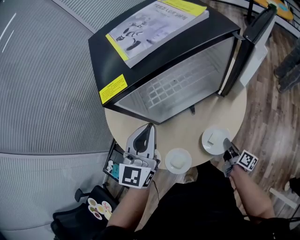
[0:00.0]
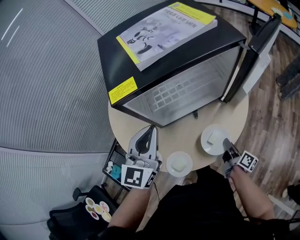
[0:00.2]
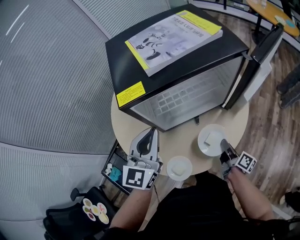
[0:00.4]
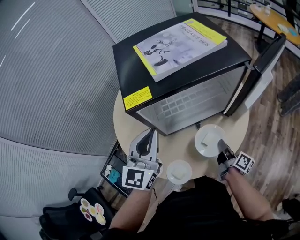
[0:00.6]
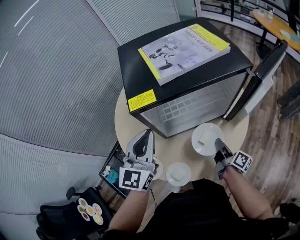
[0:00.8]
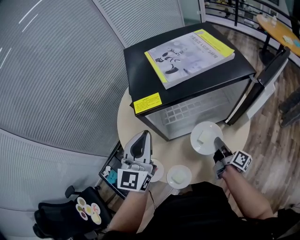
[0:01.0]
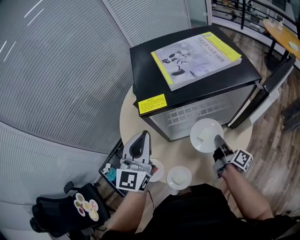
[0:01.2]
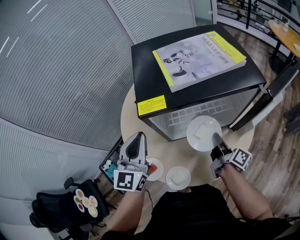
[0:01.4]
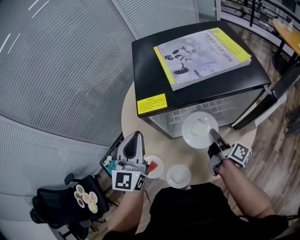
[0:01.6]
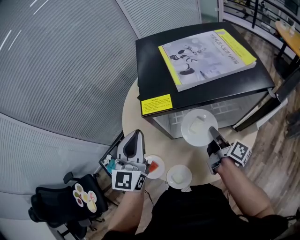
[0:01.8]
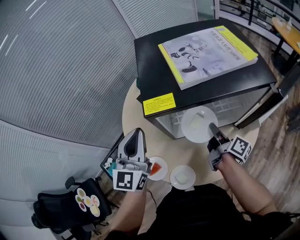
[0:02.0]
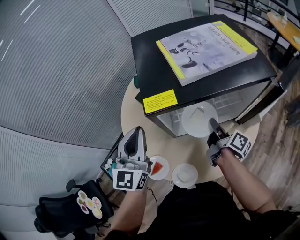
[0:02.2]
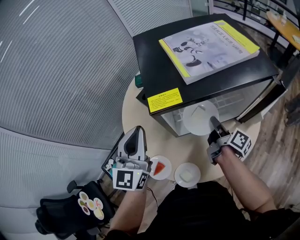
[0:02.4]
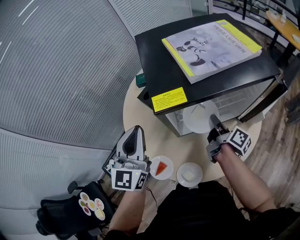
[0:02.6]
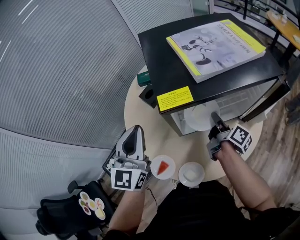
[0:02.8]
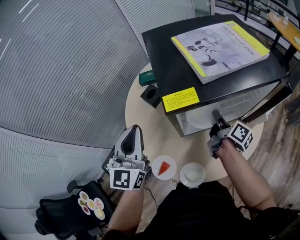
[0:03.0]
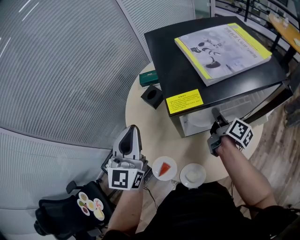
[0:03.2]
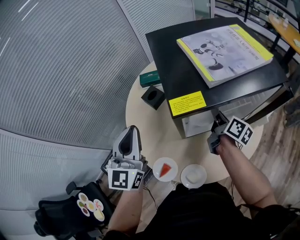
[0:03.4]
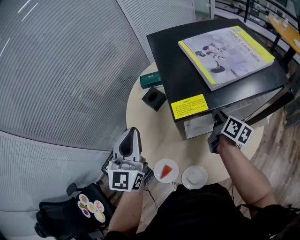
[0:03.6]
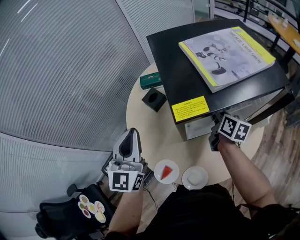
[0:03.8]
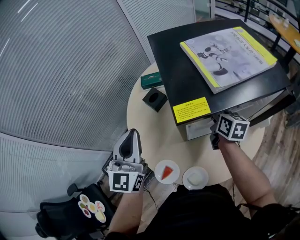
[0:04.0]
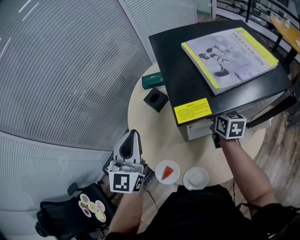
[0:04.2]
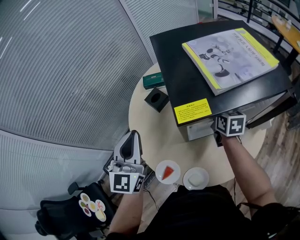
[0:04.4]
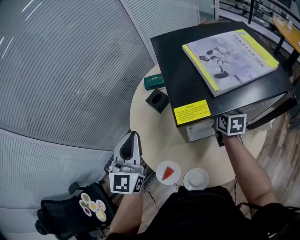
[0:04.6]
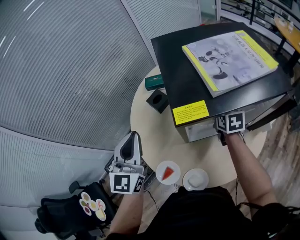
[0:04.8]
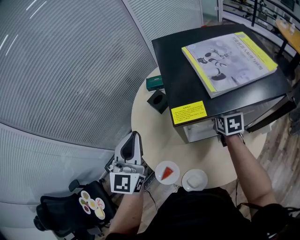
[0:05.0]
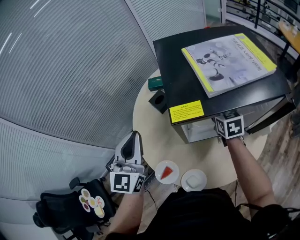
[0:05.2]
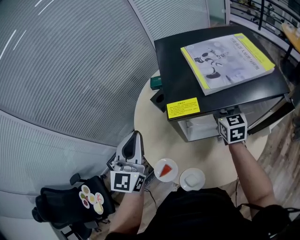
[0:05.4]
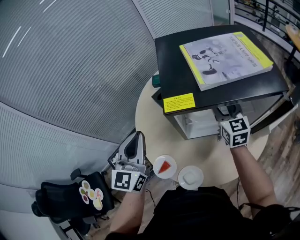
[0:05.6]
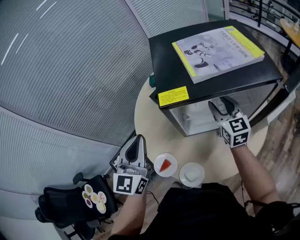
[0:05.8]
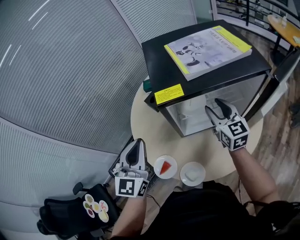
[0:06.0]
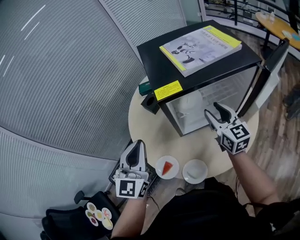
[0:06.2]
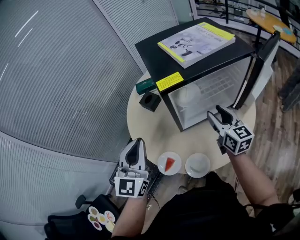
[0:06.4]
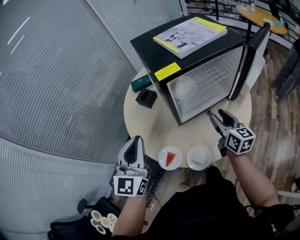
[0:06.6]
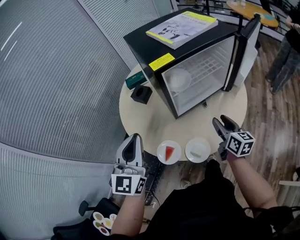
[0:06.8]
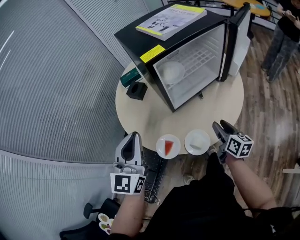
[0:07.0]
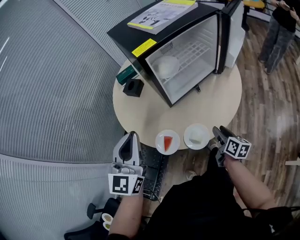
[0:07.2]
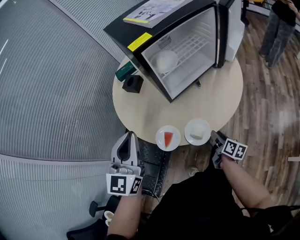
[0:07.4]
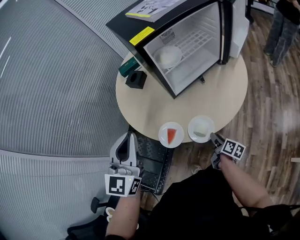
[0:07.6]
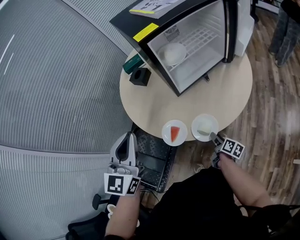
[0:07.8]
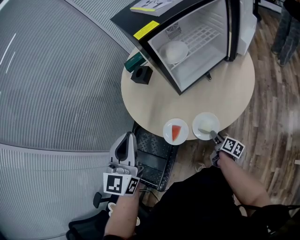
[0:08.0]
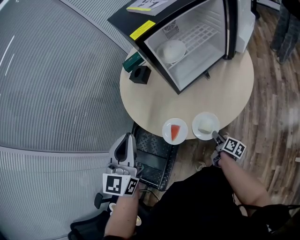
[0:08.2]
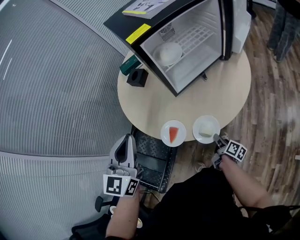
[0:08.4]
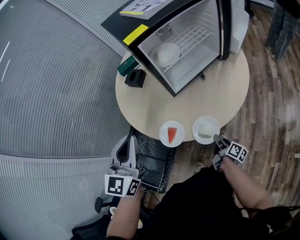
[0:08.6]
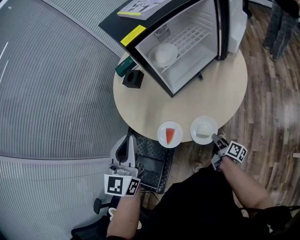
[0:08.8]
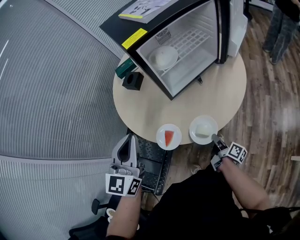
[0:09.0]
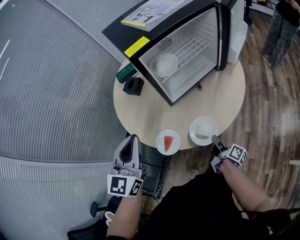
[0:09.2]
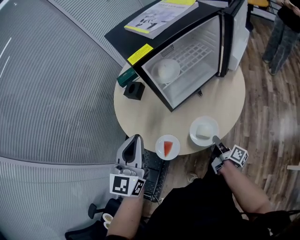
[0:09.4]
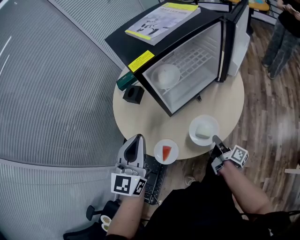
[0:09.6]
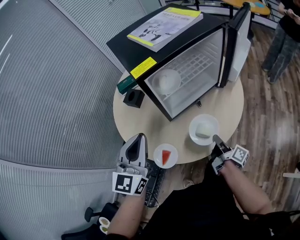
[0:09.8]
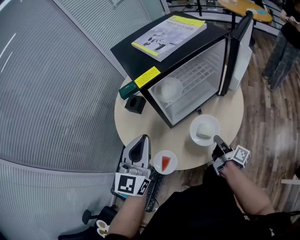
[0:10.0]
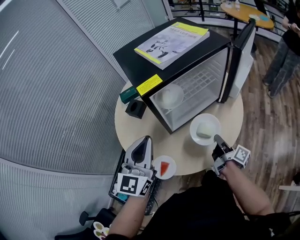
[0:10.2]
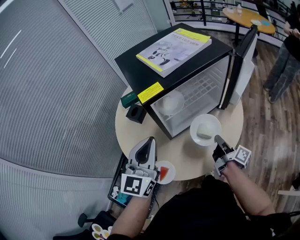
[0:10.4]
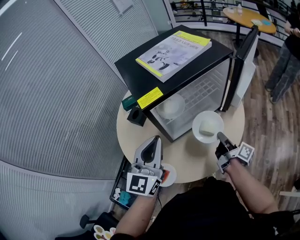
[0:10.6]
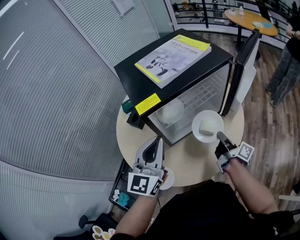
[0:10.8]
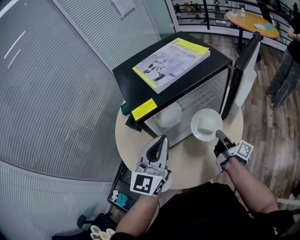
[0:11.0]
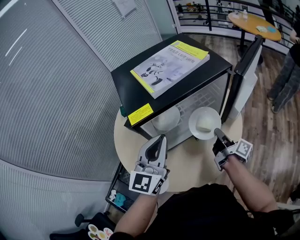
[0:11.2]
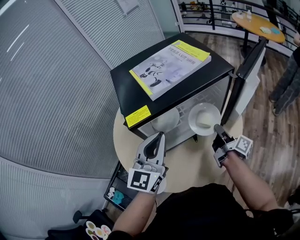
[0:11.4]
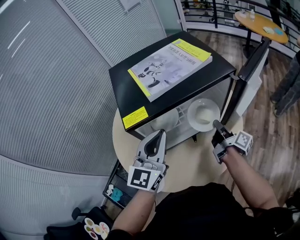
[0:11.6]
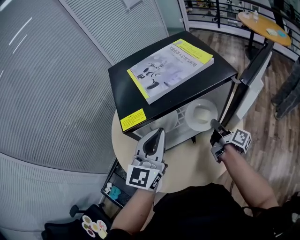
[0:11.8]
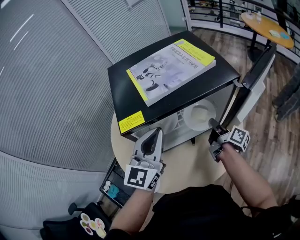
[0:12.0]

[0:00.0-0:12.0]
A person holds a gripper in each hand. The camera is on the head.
0:00.0 to 0:01.6: The left gripper travels to the left and upward by some 10 cm, and swivels approximately 20 degrees; the right gripper heads forward, upward and to the left, covering approximately 30 cm, and swivels some 30 degrees.
0:01.6 to 0:03.0: The left gripper travels to the left by approximately 5 cm. Meanwhile the right gripper goes some 10 cm forward and to the left.
0:03.0 to 0:04.4: The right gripper moves forward, some 5 cm, and rotates around the line of its fingers by roughly 50 degrees, counterclockwise from behind.
0:04.4 to 0:06.0: The left gripper heads backward, covering roughly 10 cm. The right gripper is displaced upward and backward by approximately 10 cm, rotates some 30 degrees, and opens up.
0:06.0 to 0:07.6: The left gripper is displaced backward by some 15 cm, and turns by some 20 degrees. Meanwhile the right gripper is displaced backward and downward by approximately 50 cm, and rolls clockwise, seen from behind, by roughly 70 degrees.
0:07.6 to 0:09.0: The right gripper closes its fingers.
0:09.0 to 0:10.4: The left gripper travels forward, to the right and upward by some 15 cm. The right gripper goes about 25 cm forward and upward.
0:10.4 to 0:12.0: The left gripper travels forward and to the right by some 15 cm. Meanwhile the right gripper moves forward, some 20 cm.

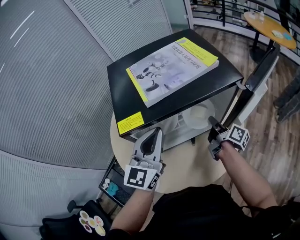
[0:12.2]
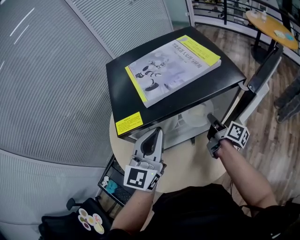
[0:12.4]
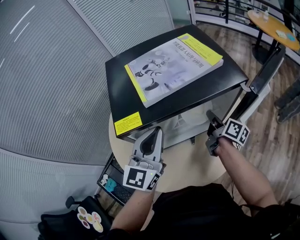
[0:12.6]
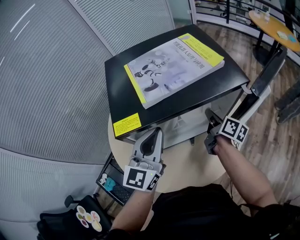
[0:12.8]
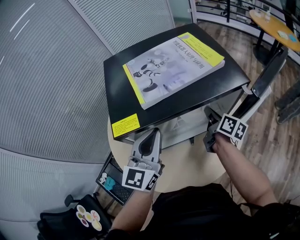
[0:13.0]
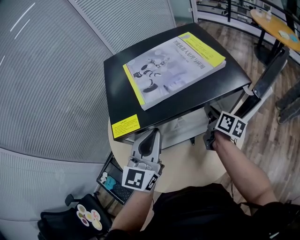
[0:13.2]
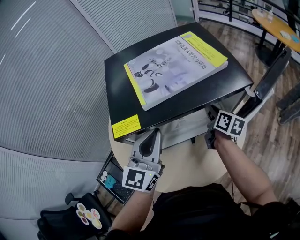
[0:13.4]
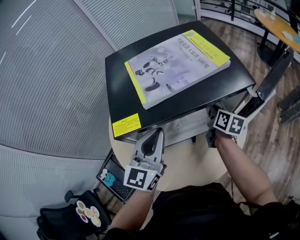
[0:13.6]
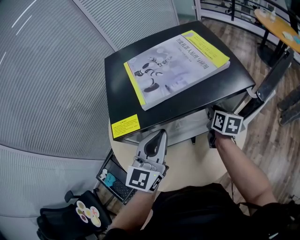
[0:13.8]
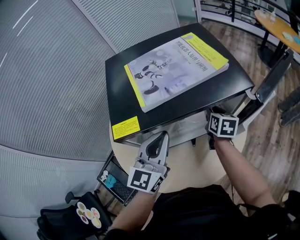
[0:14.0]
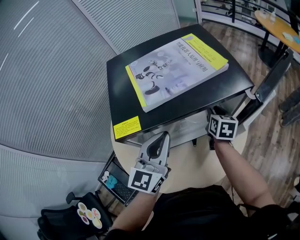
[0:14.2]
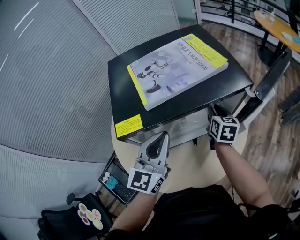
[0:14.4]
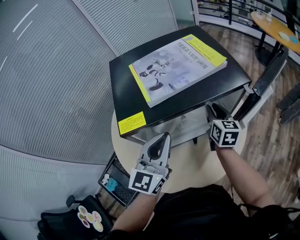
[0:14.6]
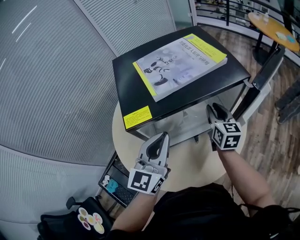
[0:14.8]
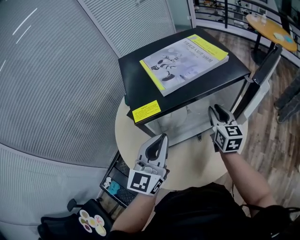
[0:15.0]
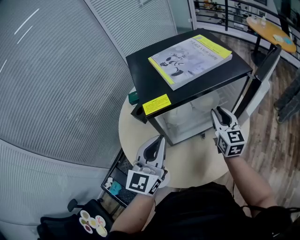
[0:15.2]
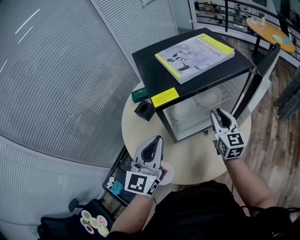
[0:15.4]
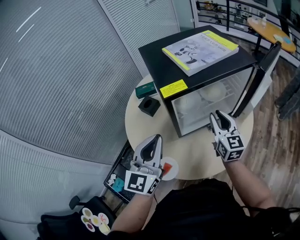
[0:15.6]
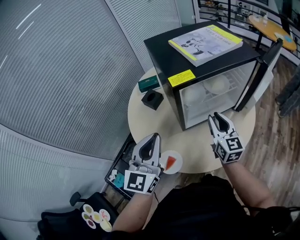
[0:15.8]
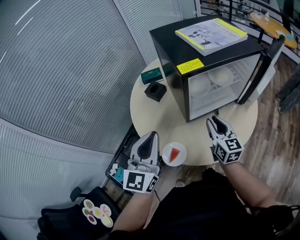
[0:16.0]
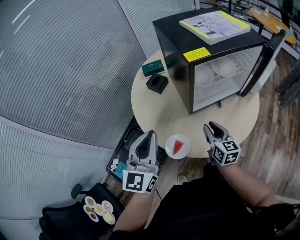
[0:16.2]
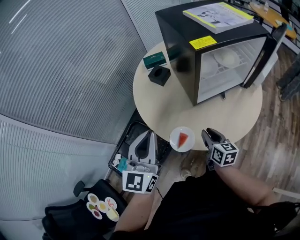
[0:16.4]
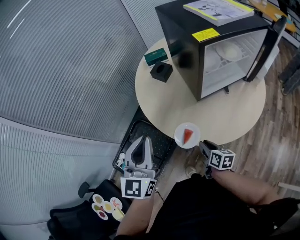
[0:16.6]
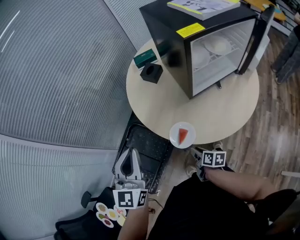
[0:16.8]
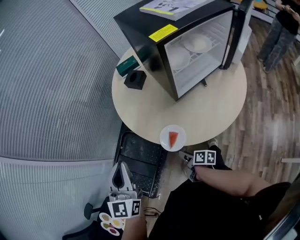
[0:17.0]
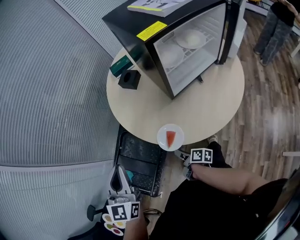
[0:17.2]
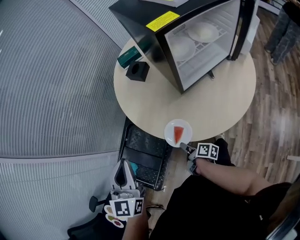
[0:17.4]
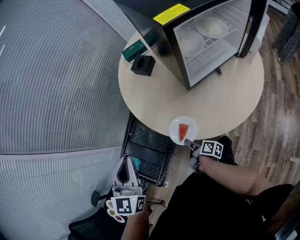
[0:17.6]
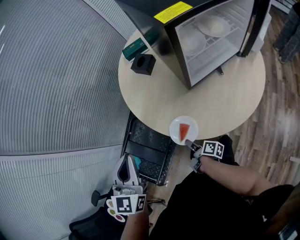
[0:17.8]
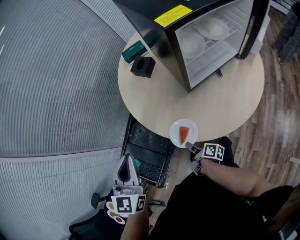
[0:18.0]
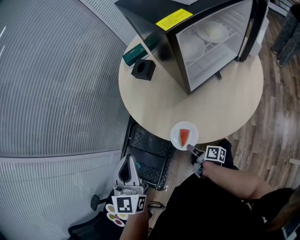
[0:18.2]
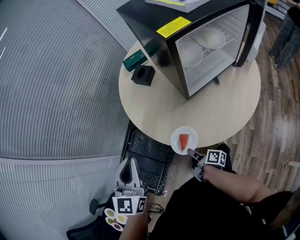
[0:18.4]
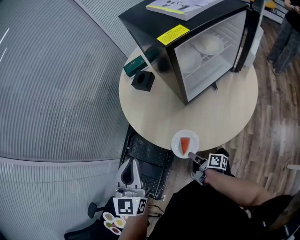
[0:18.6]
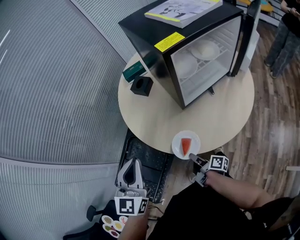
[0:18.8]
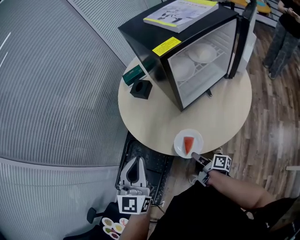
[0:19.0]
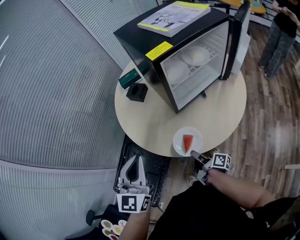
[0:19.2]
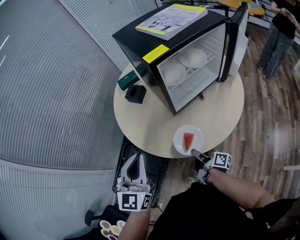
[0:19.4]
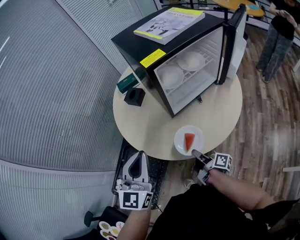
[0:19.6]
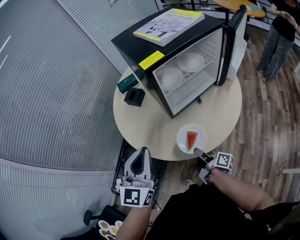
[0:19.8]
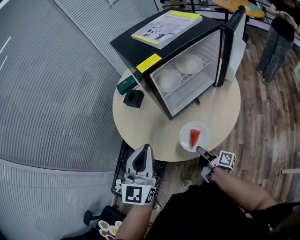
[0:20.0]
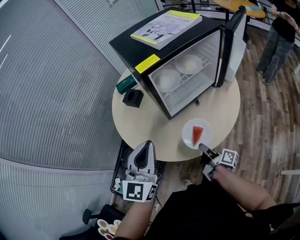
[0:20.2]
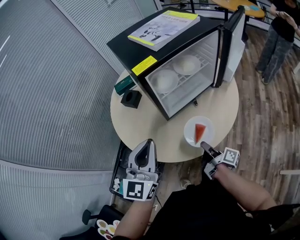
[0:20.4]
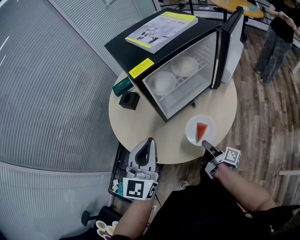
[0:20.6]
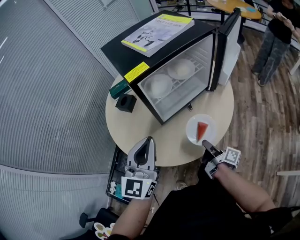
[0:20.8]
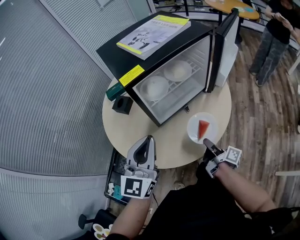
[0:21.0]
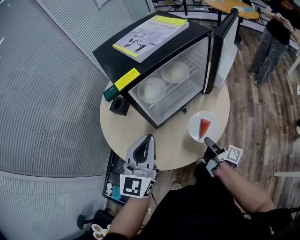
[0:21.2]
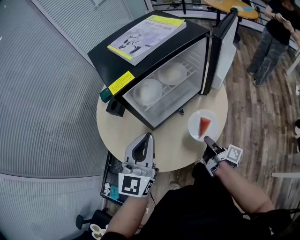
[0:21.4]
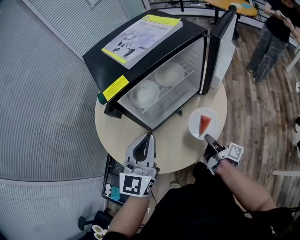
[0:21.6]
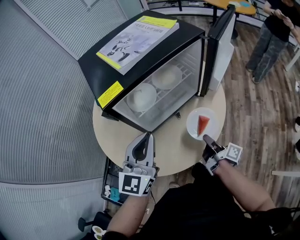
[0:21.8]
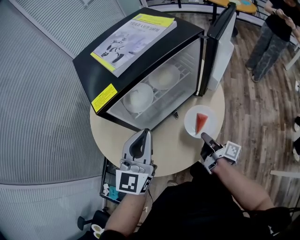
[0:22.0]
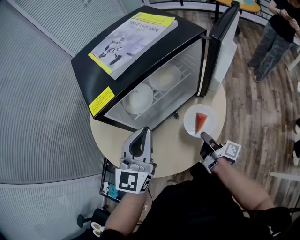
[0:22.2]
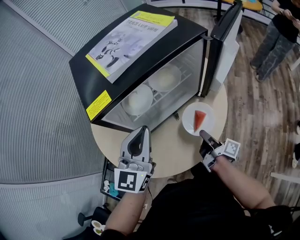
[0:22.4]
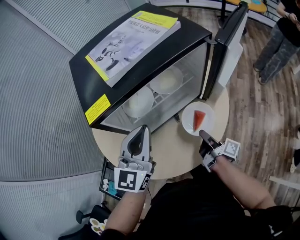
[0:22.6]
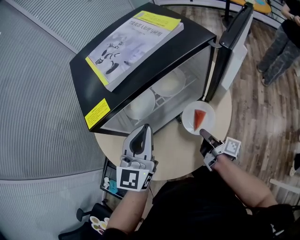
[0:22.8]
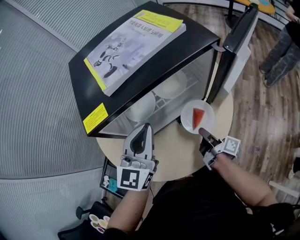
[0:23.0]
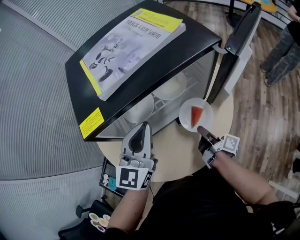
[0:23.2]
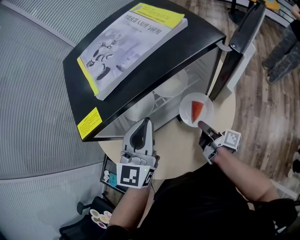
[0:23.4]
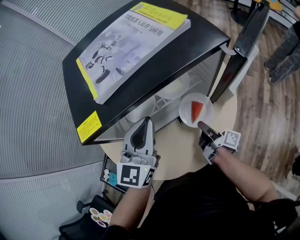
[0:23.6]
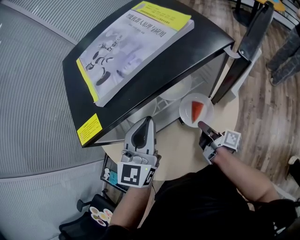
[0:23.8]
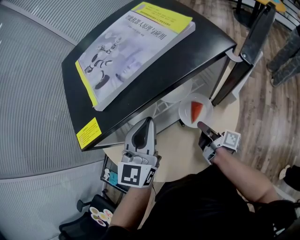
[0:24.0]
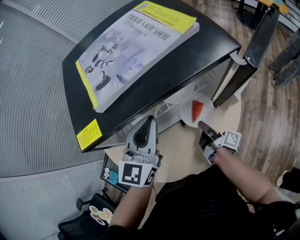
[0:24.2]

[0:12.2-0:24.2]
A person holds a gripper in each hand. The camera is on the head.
0:12.2 to 0:13.8: The right gripper moves forward, approximately 5 cm, and turns by approximately 40 degrees.
0:13.8 to 0:15.2: The right gripper moves backward and upward, approximately 15 cm, and swivels some 40 degrees; the left gripper travels backward and to the left by roughly 10 cm.
0:15.2 to 0:16.6: The right gripper moves backward, to the left and downward, some 50 cm, and swivels about 50 degrees, while the left gripper goes approximately 30 cm to the left and backward.
0:16.6 to 0:18.2: The right gripper heads downward and to the left, covering roughly 10 cm, rotates around the line of its fingers by about 40 degrees, clockwise from behind, and closes. Meanwhile the left gripper goes some 5 cm downward.
0:18.2 to 0:19.8: The left gripper travels to the right by approximately 15 cm. Meanwhile the right gripper heads to the right and upward, covering about 20 cm.
0:19.8 to 0:21.2: Both grippers move to the right and forward, some 15 cm.
0:21.2 to 0:22.6: The left gripper shifts approximately 15 cm forward and to the right. The right gripper moves forward, some 10 cm.
0:22.6 to 0:24.2: The two grippers go about 10 cm forward.
